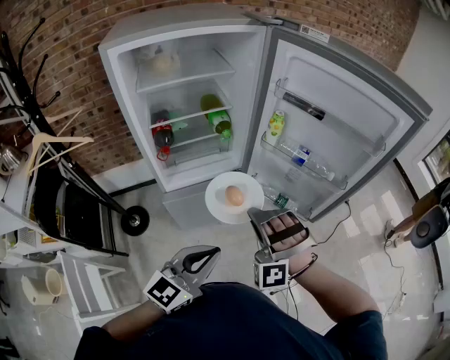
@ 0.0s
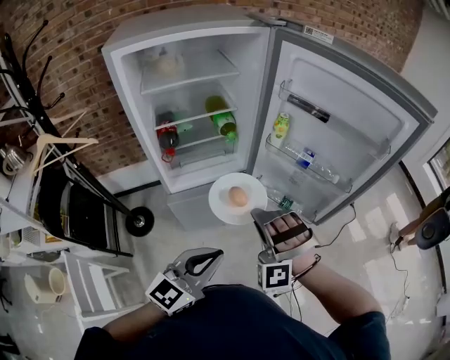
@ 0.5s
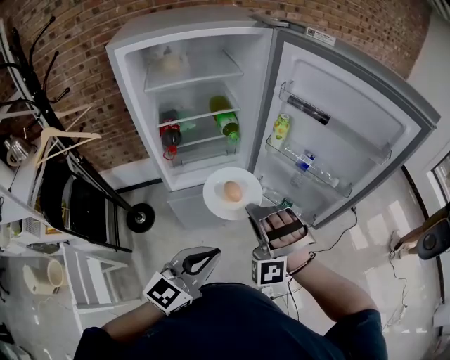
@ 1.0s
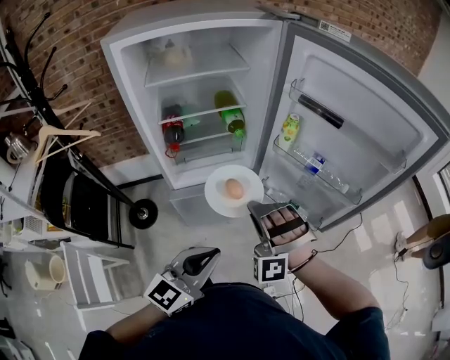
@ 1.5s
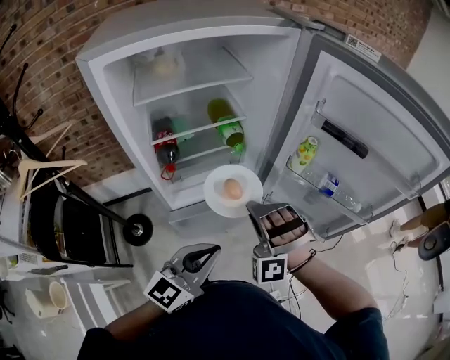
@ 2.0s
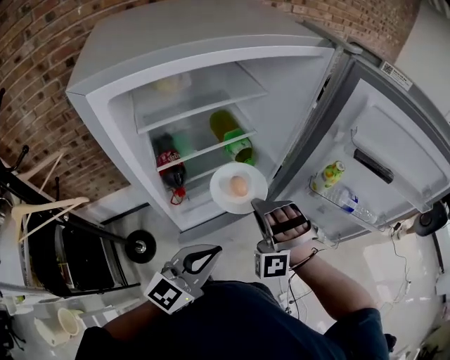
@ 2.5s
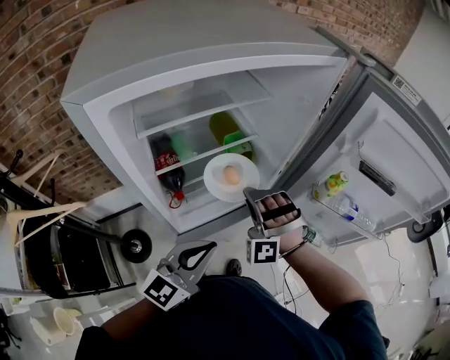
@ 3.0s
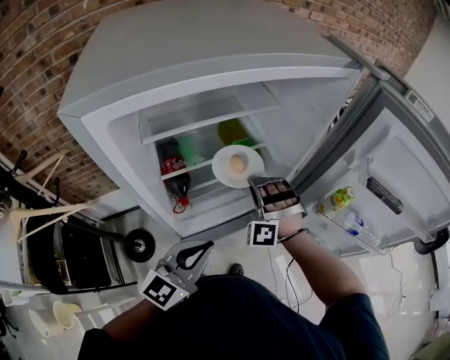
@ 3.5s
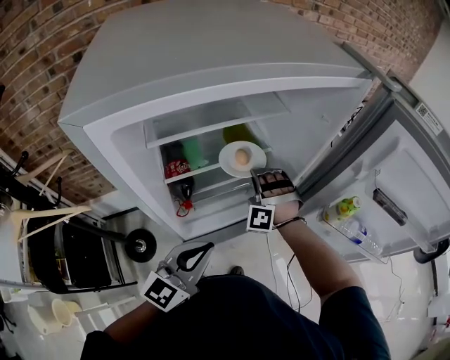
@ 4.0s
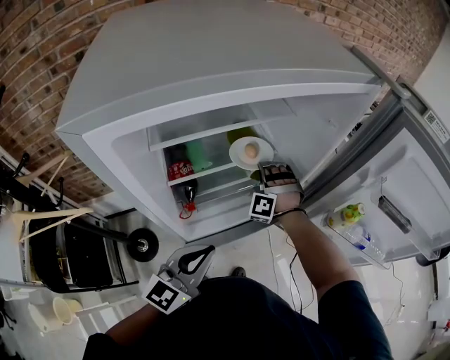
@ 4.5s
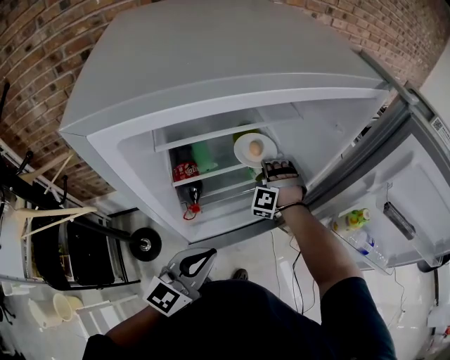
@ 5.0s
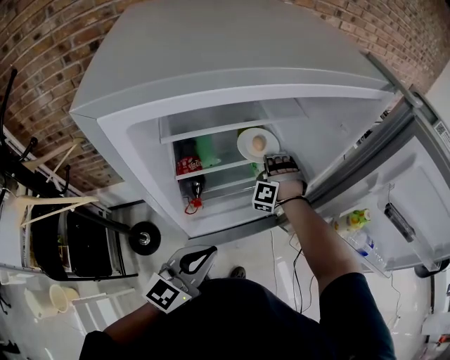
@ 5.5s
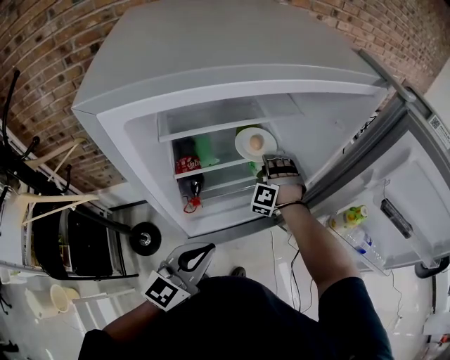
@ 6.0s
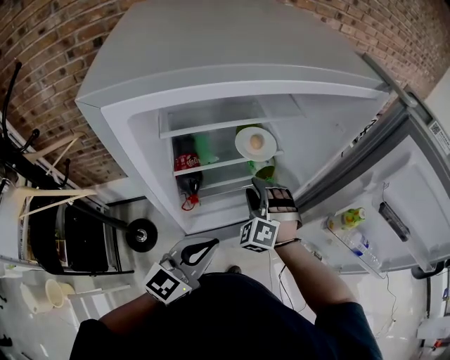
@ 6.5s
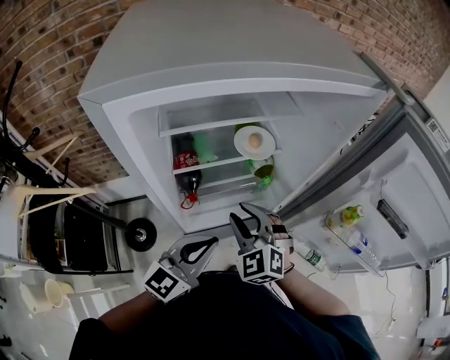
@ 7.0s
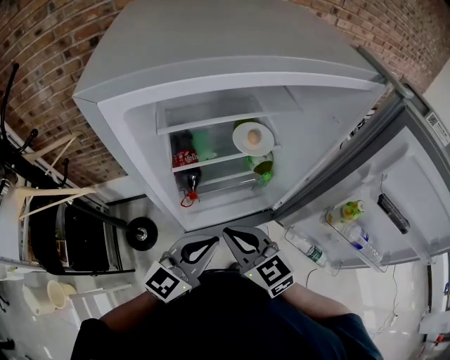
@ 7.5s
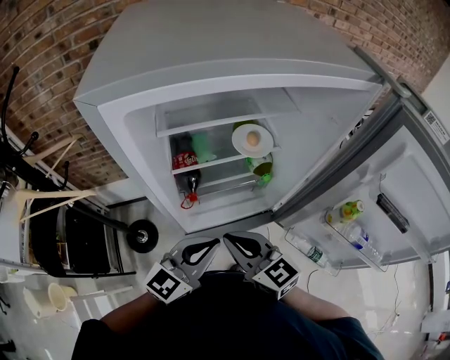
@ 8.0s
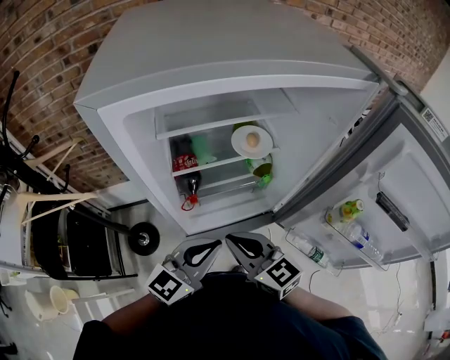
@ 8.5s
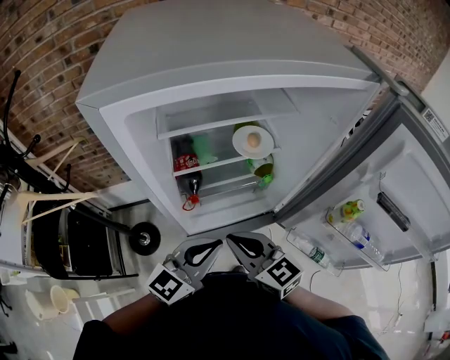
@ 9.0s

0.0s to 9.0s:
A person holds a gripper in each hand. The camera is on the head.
0.0s to 2.0s: The left gripper shifts by some 15 cm.
2.0s to 4.5s: The left gripper moves approximately 20 cm.

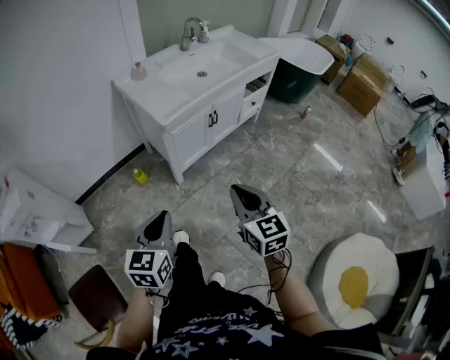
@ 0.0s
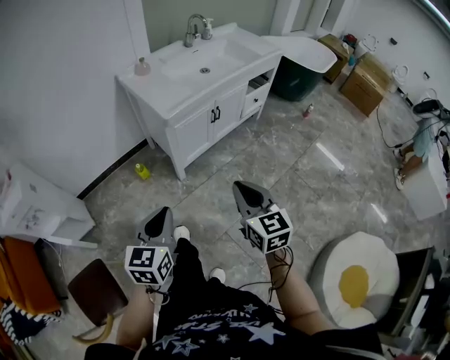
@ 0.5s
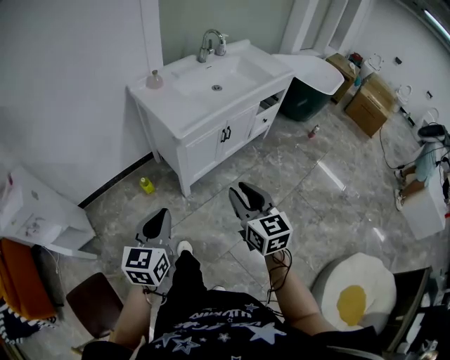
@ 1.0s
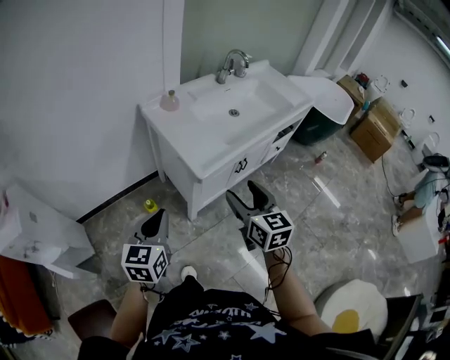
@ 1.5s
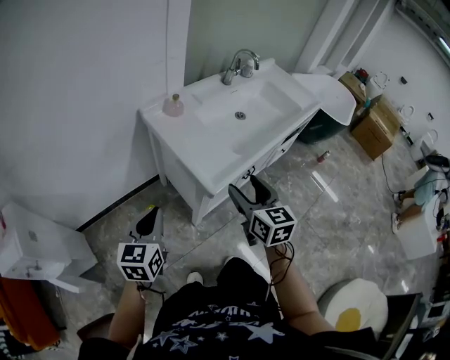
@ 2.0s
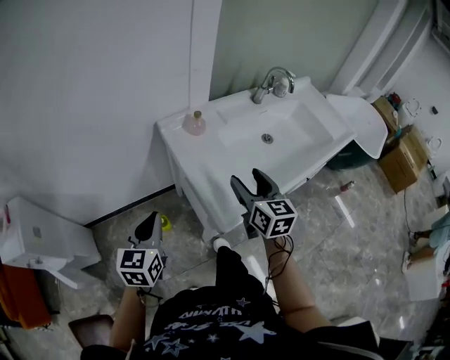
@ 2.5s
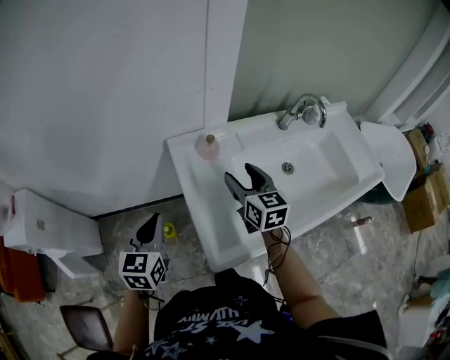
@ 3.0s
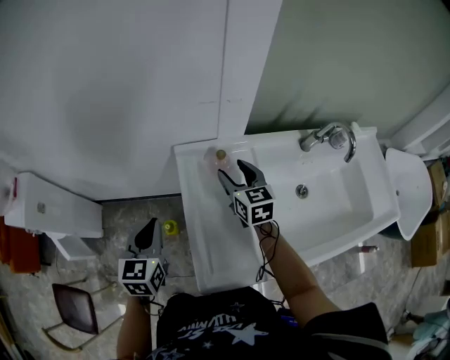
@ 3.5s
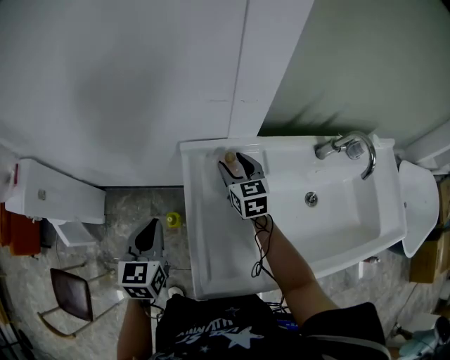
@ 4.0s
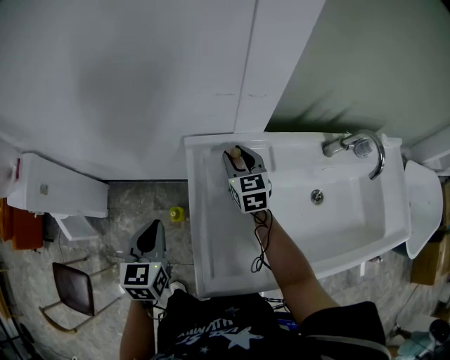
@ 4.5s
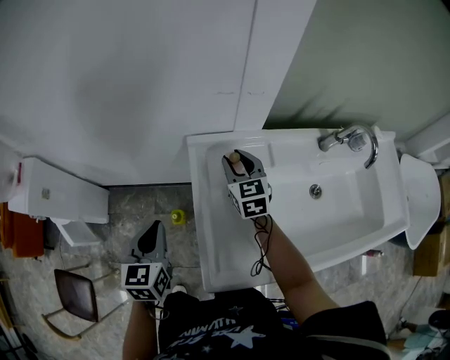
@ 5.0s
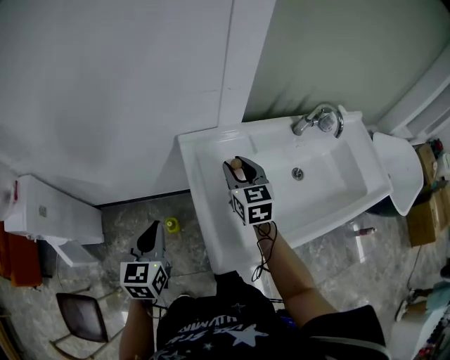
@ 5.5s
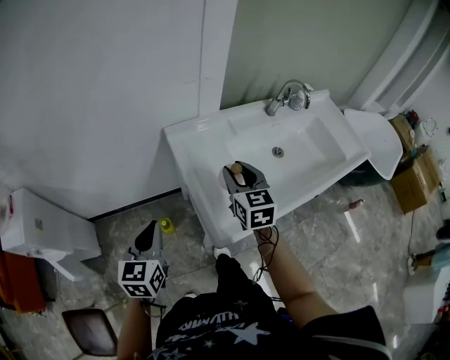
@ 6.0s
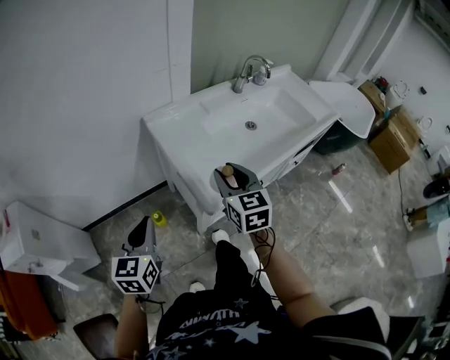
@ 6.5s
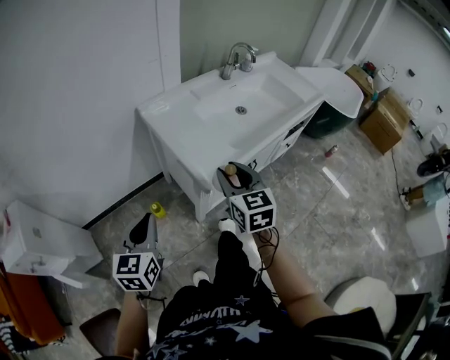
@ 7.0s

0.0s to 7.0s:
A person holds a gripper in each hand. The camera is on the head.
0.0s to 2.0s: The right gripper moves forward, some 35 cm, and opens its fingers, while the left gripper heads forward and to the left, covering about 40 cm.
2.0s to 3.5s: The left gripper changes place by some 25 cm, and turns by roughly 40 degrees. Meanwhile the right gripper shifts by roughly 50 cm, and swivels some 30 degrees.
3.5s to 5.0s: The right gripper closes its fingers.
5.0s to 7.0s: The left gripper moves roughly 25 cm, and turns by about 40 degrees; the right gripper moves about 40 cm, and changes its angle by some 30 degrees.

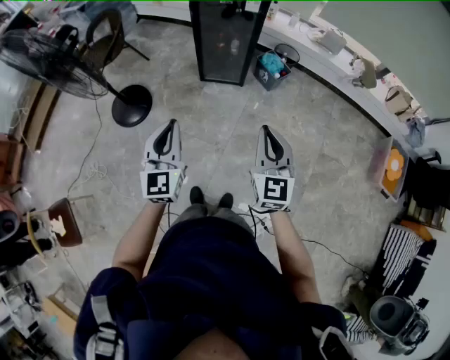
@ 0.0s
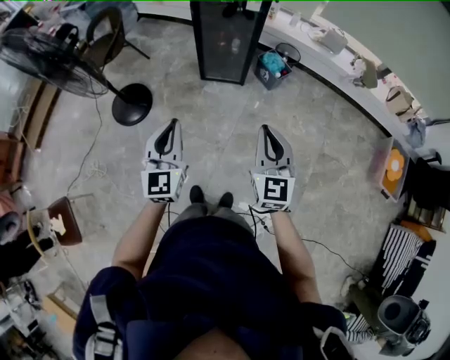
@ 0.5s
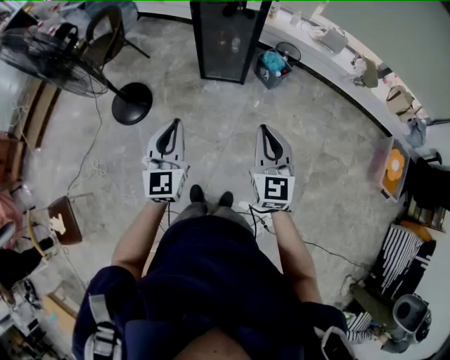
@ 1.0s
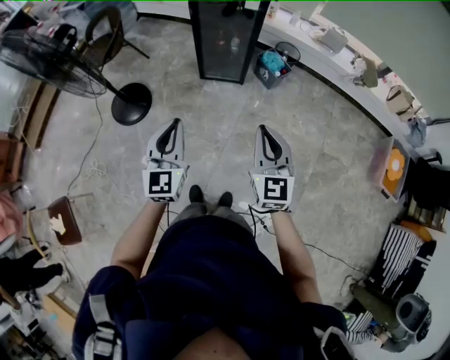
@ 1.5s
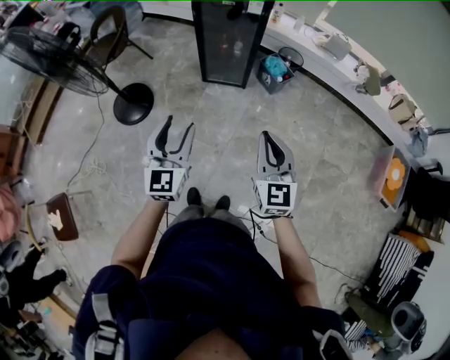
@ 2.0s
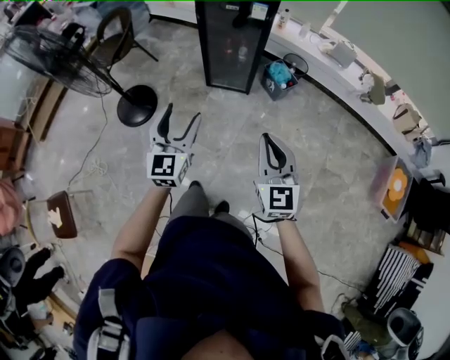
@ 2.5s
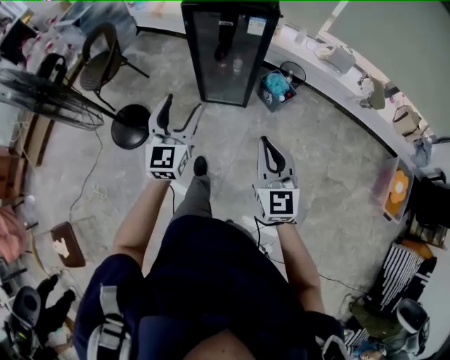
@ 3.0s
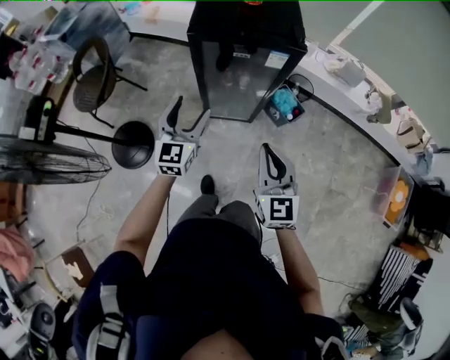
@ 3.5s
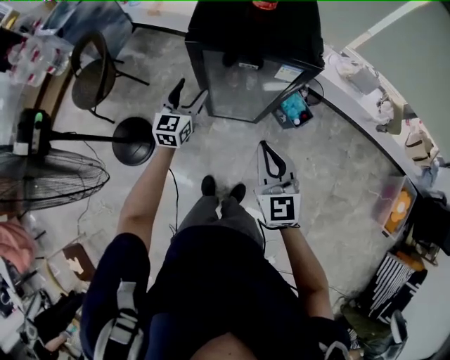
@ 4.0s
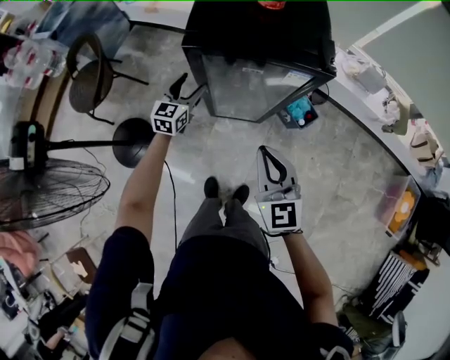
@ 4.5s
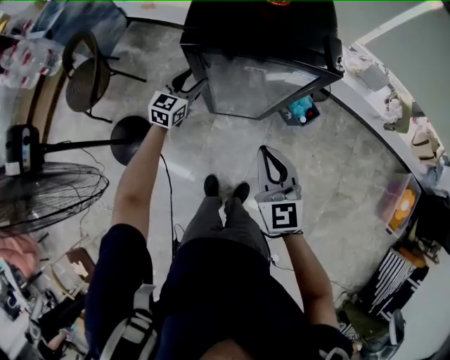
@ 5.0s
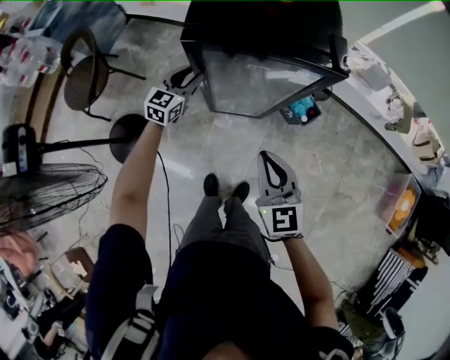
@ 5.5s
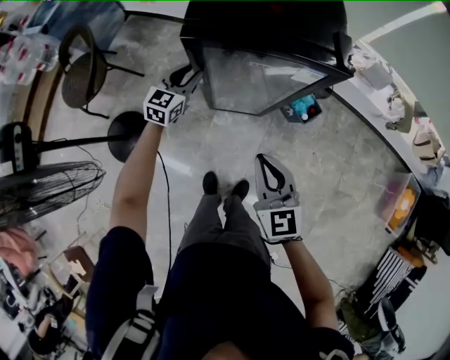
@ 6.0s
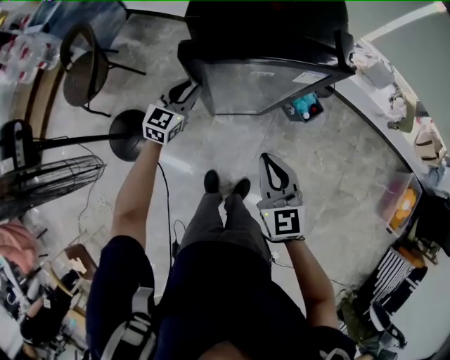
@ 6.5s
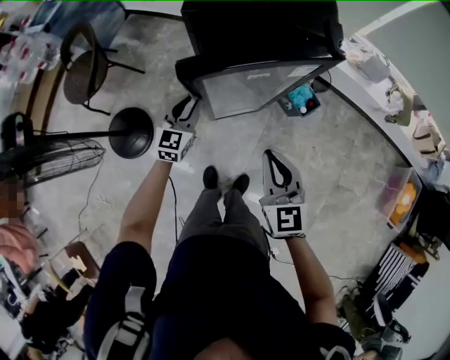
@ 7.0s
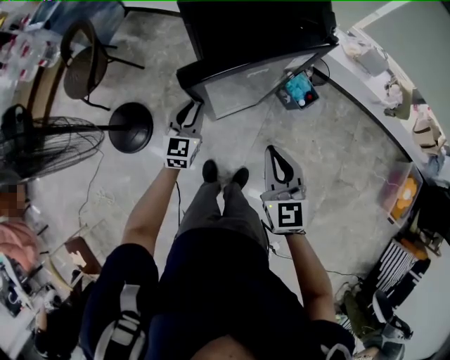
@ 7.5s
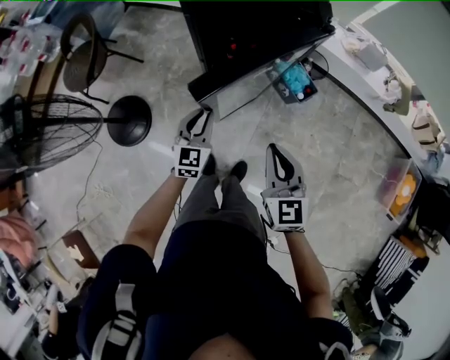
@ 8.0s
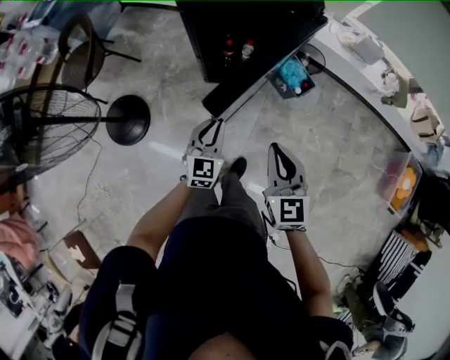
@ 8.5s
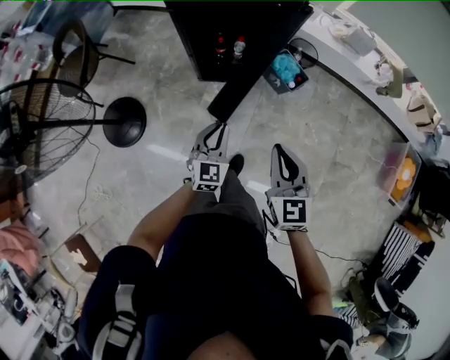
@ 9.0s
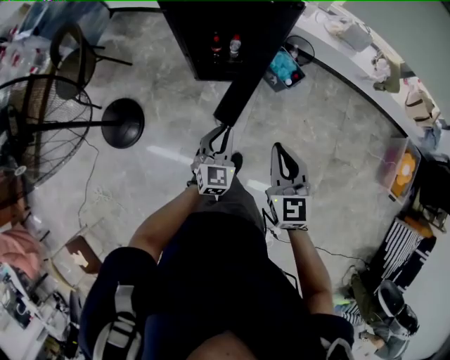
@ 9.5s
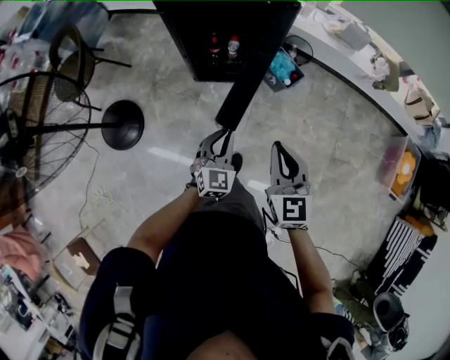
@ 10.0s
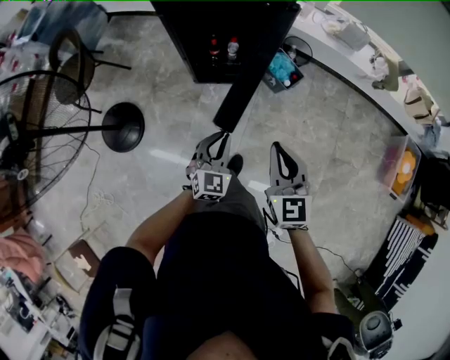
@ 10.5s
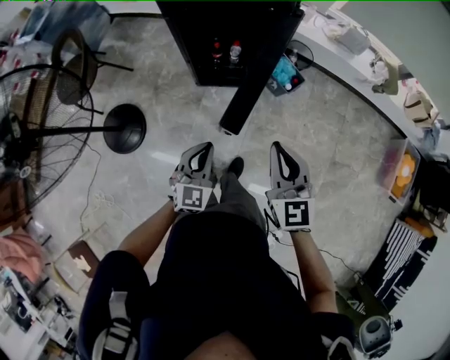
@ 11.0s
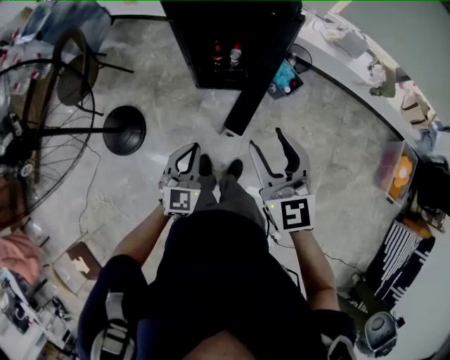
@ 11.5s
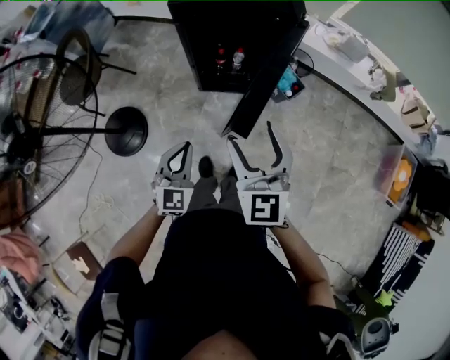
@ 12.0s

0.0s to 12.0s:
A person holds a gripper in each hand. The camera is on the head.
0.0s to 2.0s: The left gripper opens.
2.0s to 4.0s: The pair of grippers is taken forward, approximately 60 cm.
4.0s to 6.0s: The right gripper is displaced downward by some 10 cm. Meanwhile the left gripper travels downward and forward by roughly 15 cm, and closes.
6.0s to 8.0s: The right gripper shifts some 10 cm backward and to the right. The left gripper shifts some 25 cm backward.
8.0s to 10.0s: The left gripper heads to the right and backward, covering about 15 cm. Meanwhile the right gripper heads to the right and backward, covering roughly 10 cm.
10.0s to 12.0s: Both grippers move to the left and upward, about 15 cm. The right gripper opens up.
